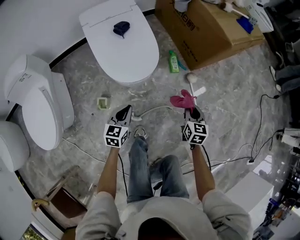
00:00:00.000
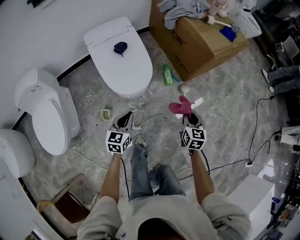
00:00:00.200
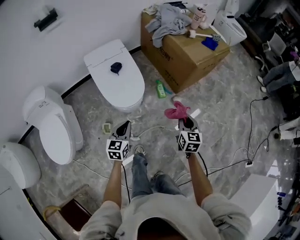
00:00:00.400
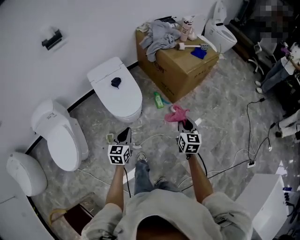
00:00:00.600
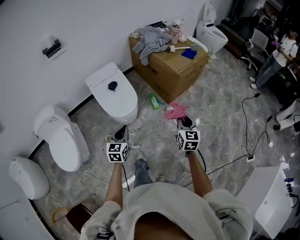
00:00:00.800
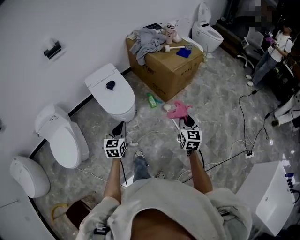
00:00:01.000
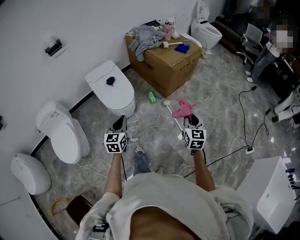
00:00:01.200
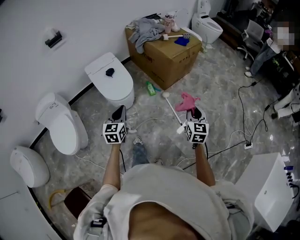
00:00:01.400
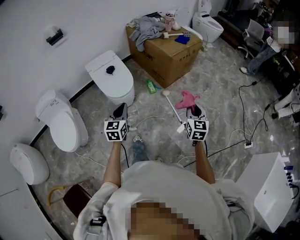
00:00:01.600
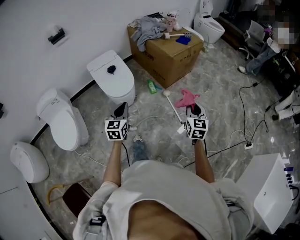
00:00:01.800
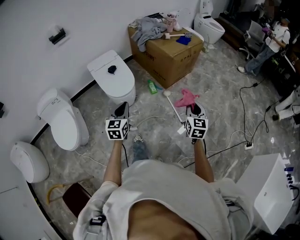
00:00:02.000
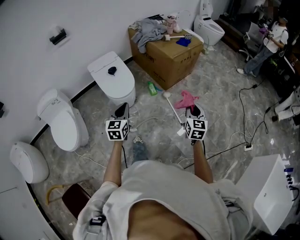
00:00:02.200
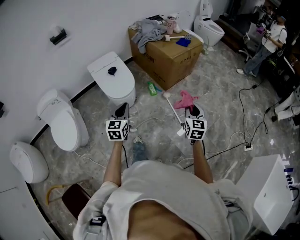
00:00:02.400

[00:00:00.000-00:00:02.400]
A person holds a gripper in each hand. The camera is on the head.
00:00:00.000 to 00:00:01.200: The right gripper is displaced upward, backward and to the right by approximately 50 cm, and turns by roughly 20 degrees; the left gripper travels upward by some 40 cm.
00:00:01.200 to 00:00:02.400: The grippers stay close to where they were, moving slightly.

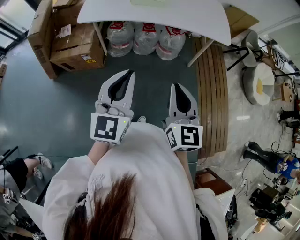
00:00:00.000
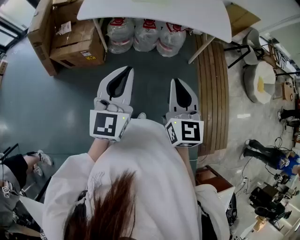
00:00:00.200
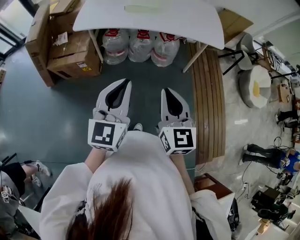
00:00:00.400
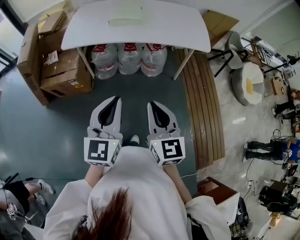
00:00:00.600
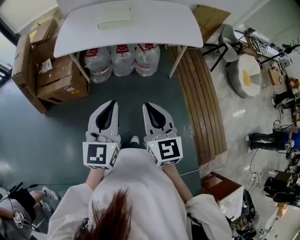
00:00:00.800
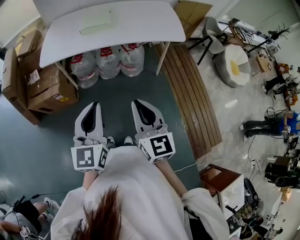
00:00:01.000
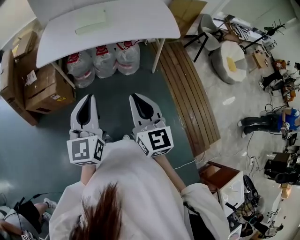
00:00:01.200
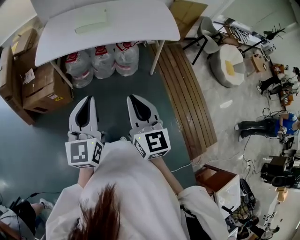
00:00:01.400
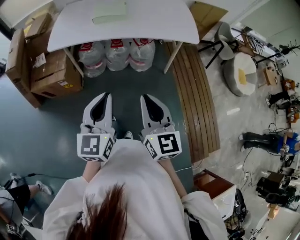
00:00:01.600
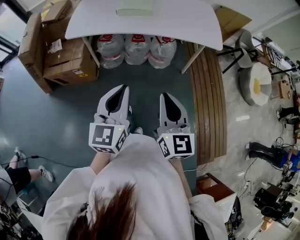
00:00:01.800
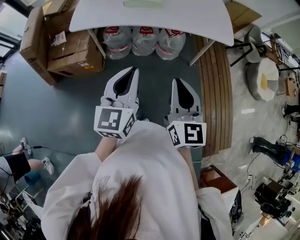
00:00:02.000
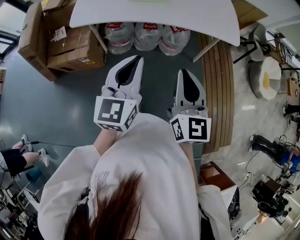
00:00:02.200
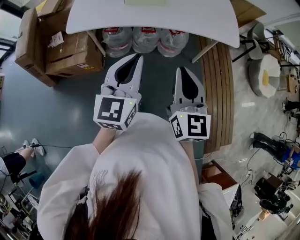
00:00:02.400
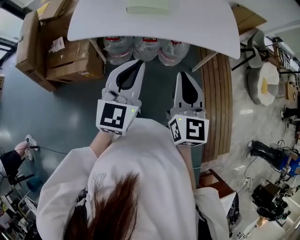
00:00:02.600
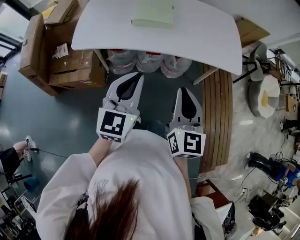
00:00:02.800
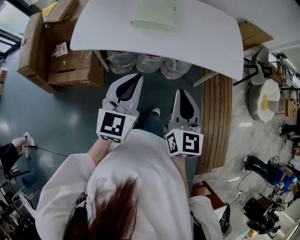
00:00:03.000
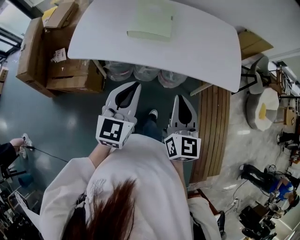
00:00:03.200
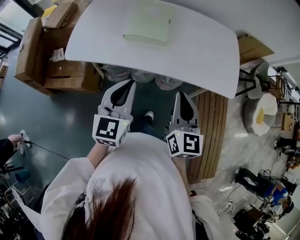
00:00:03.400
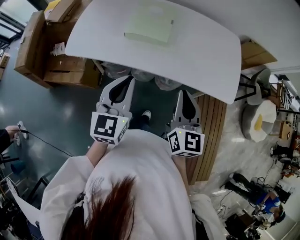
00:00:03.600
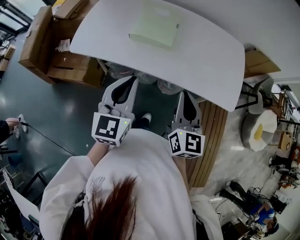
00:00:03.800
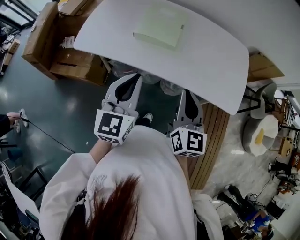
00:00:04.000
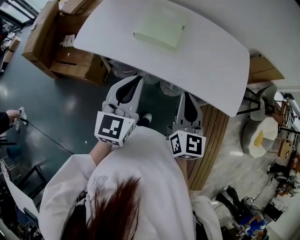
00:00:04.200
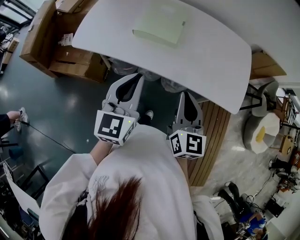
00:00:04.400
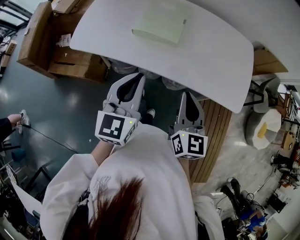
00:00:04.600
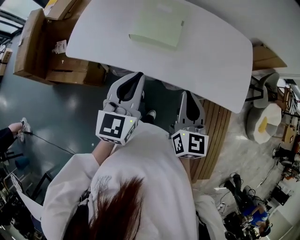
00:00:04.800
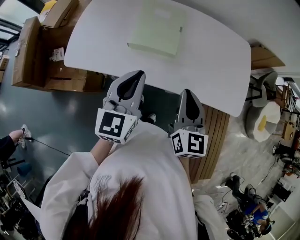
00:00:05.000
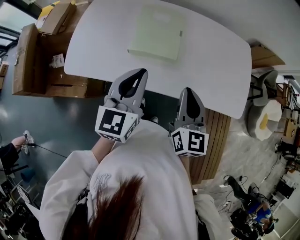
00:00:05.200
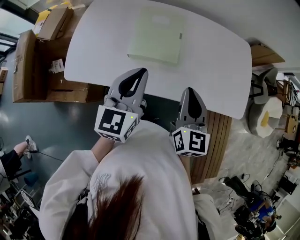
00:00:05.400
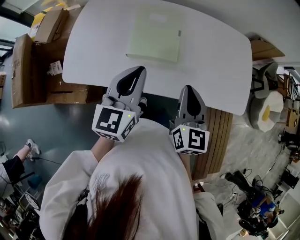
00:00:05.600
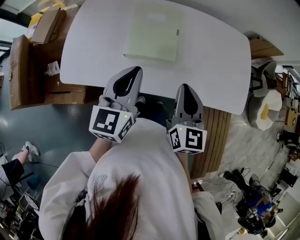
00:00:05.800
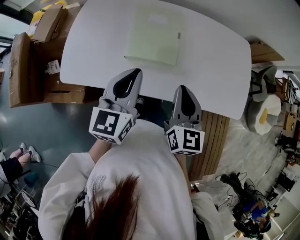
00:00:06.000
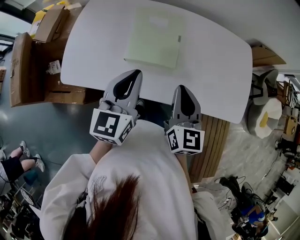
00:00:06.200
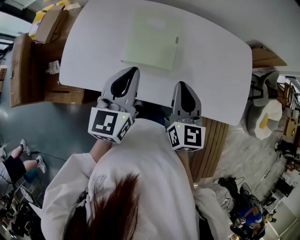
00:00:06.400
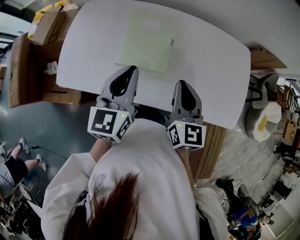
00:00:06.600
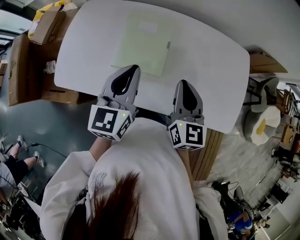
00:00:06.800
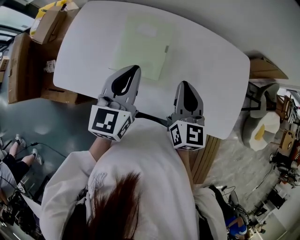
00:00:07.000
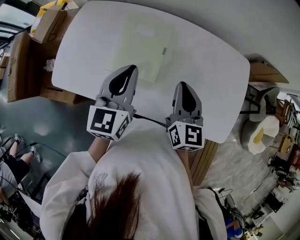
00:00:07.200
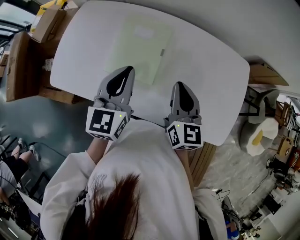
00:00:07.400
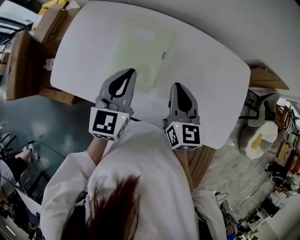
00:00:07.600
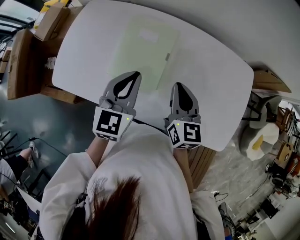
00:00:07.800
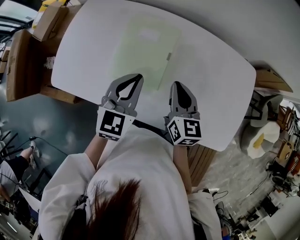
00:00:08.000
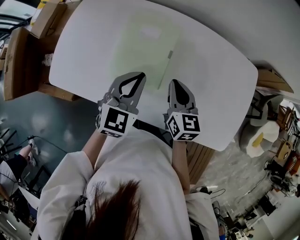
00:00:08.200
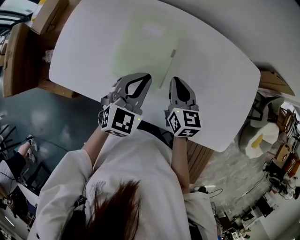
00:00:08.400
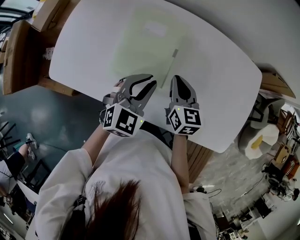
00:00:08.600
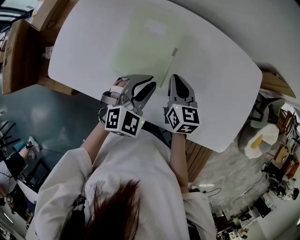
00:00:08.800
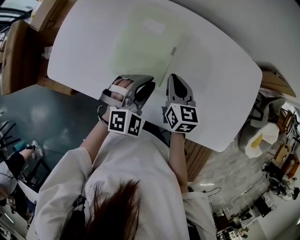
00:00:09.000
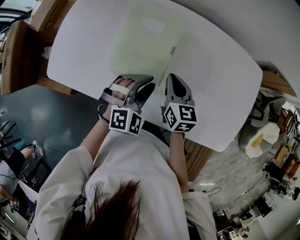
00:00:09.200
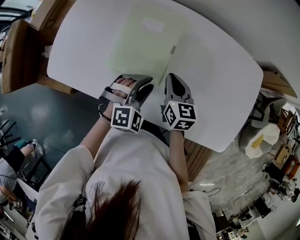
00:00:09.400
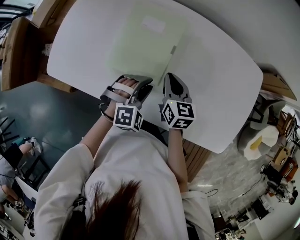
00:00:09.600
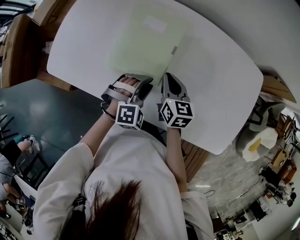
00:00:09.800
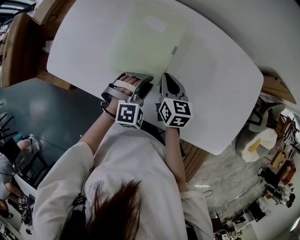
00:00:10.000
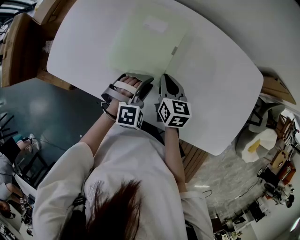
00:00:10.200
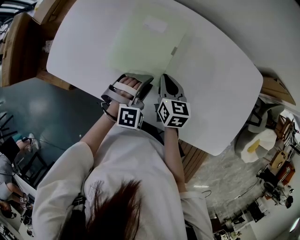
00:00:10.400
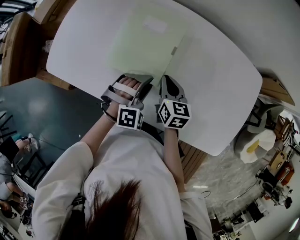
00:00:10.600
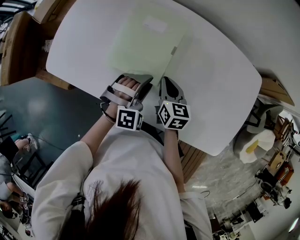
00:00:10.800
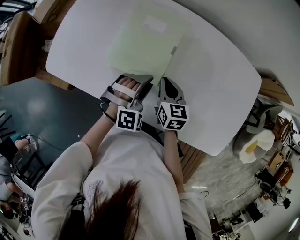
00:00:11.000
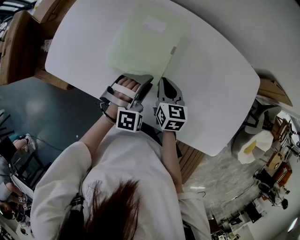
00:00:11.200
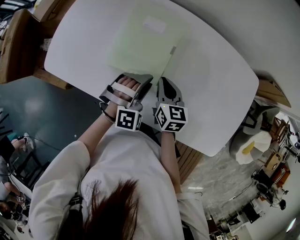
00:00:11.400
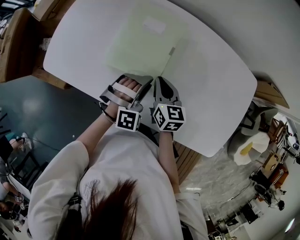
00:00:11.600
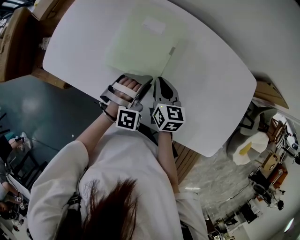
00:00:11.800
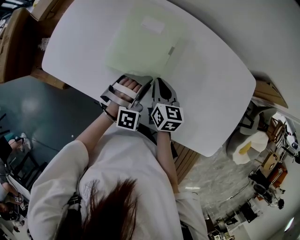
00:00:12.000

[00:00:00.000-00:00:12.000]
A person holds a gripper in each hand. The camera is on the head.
00:00:00.000 to 00:00:01.600: The left gripper heads to the right, covering about 5 cm.
00:00:01.600 to 00:00:03.000: The grippers both shift forward by approximately 25 cm.
00:00:03.000 to 00:00:04.400: The right gripper heads forward and to the right, covering roughly 15 cm, while the left gripper travels forward by about 10 cm.
00:00:04.400 to 00:00:06.000: The grippers both shift forward and to the left by roughly 15 cm.
00:00:06.000 to 00:00:07.600: The grippers both shift forward and to the right by about 15 cm.
00:00:07.600 to 00:00:09.000: The left gripper travels downward and to the right by about 15 cm, and rotates around the line of its fingers by some 50 degrees, clockwise from behind. Meanwhile the right gripper is displaced downward by about 10 cm.
00:00:09.000 to 00:00:10.400: The right gripper travels downward by roughly 5 cm. The left gripper moves downward, some 10 cm.
00:00:10.400 to 00:00:12.000: The grippers make only small movements.

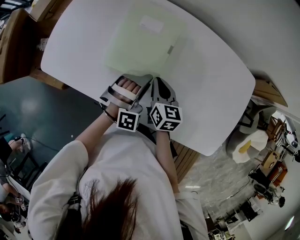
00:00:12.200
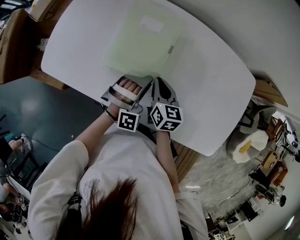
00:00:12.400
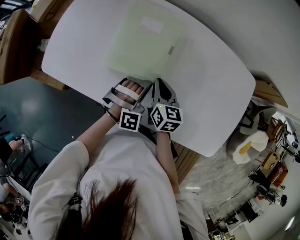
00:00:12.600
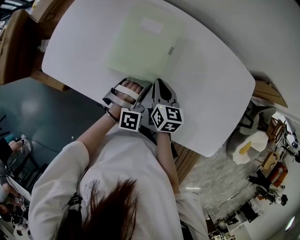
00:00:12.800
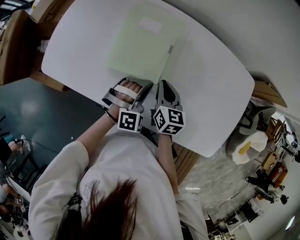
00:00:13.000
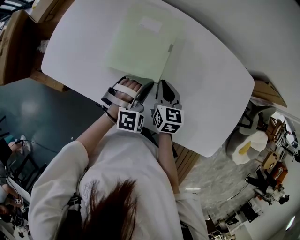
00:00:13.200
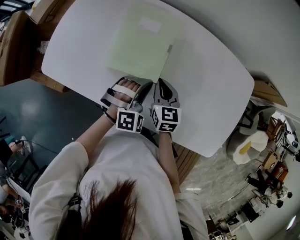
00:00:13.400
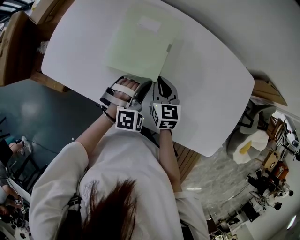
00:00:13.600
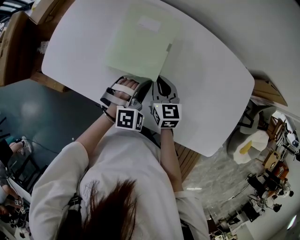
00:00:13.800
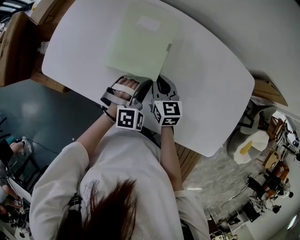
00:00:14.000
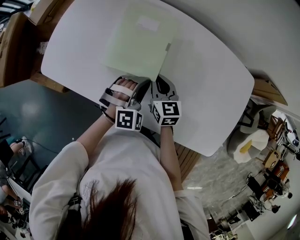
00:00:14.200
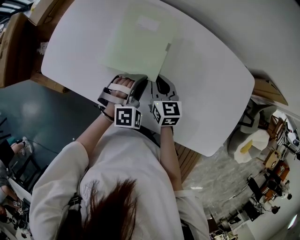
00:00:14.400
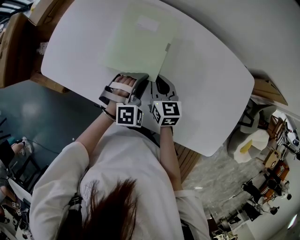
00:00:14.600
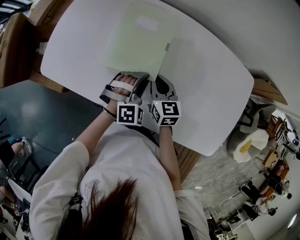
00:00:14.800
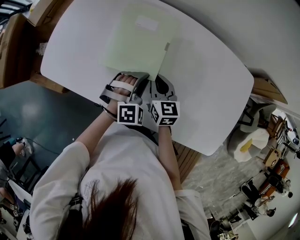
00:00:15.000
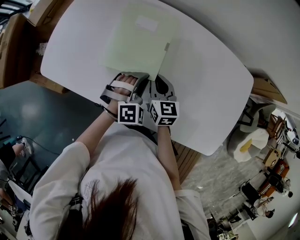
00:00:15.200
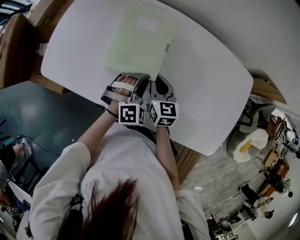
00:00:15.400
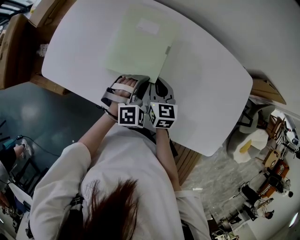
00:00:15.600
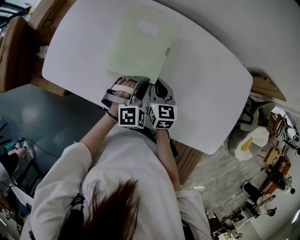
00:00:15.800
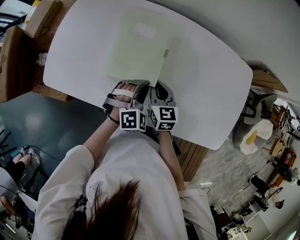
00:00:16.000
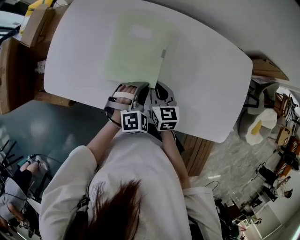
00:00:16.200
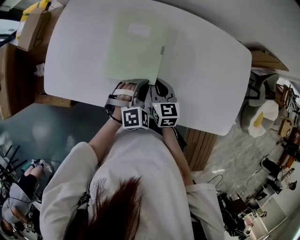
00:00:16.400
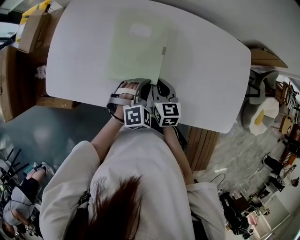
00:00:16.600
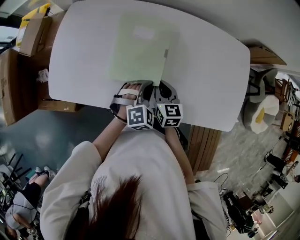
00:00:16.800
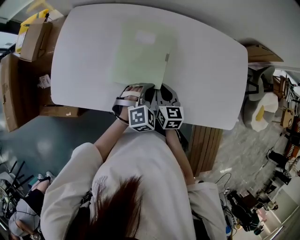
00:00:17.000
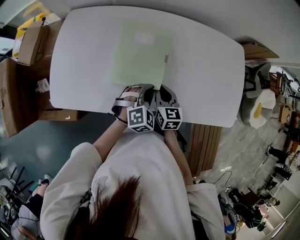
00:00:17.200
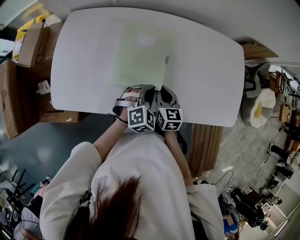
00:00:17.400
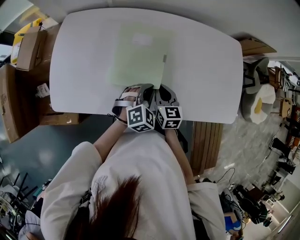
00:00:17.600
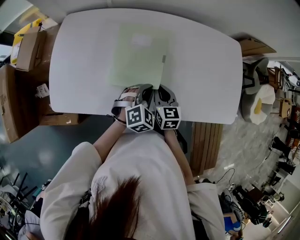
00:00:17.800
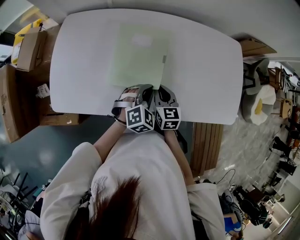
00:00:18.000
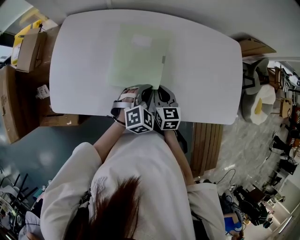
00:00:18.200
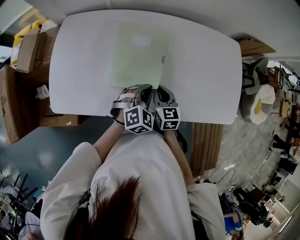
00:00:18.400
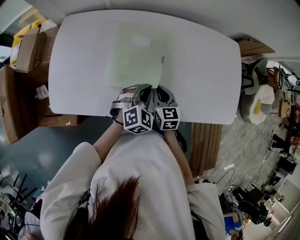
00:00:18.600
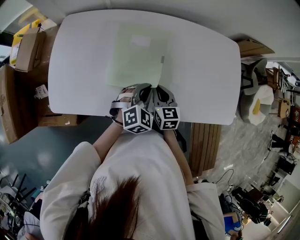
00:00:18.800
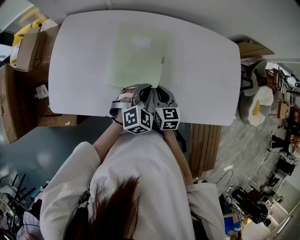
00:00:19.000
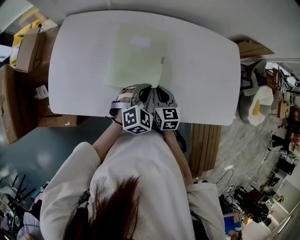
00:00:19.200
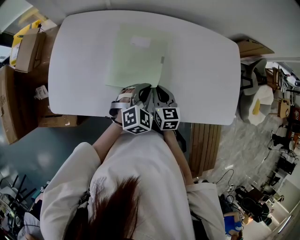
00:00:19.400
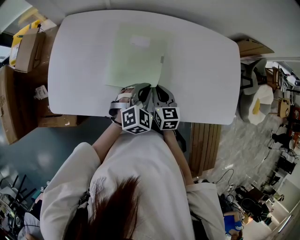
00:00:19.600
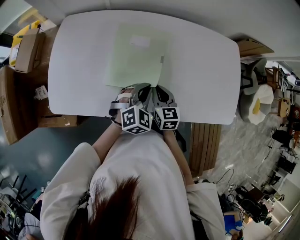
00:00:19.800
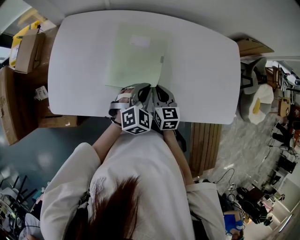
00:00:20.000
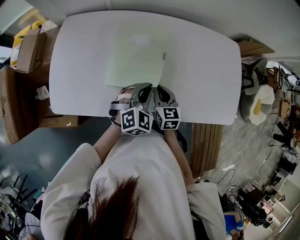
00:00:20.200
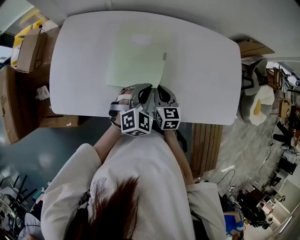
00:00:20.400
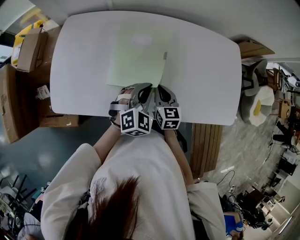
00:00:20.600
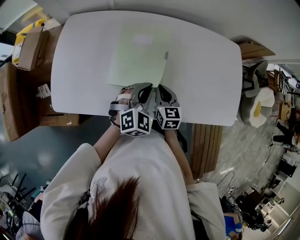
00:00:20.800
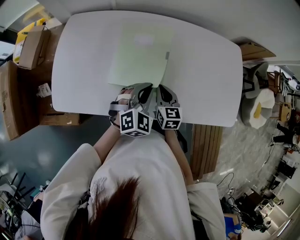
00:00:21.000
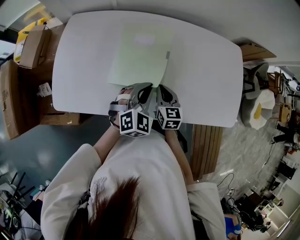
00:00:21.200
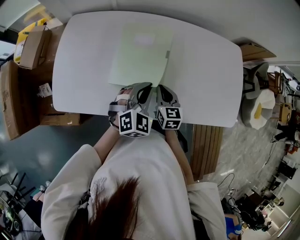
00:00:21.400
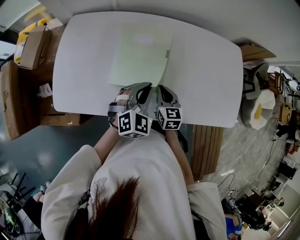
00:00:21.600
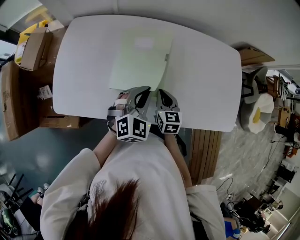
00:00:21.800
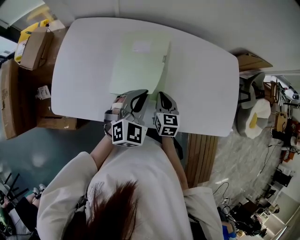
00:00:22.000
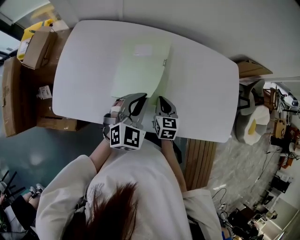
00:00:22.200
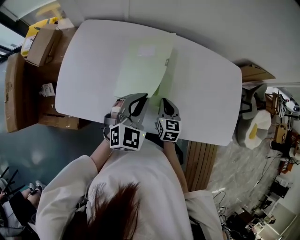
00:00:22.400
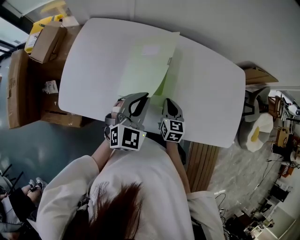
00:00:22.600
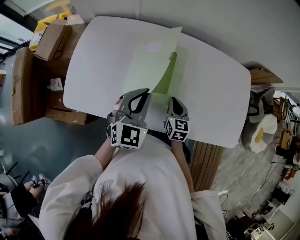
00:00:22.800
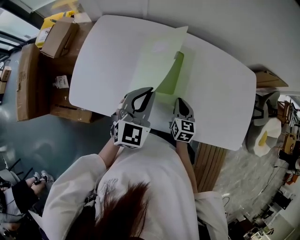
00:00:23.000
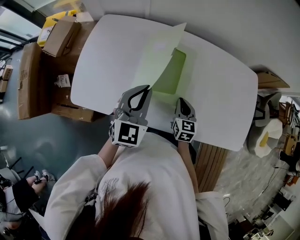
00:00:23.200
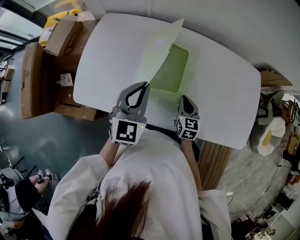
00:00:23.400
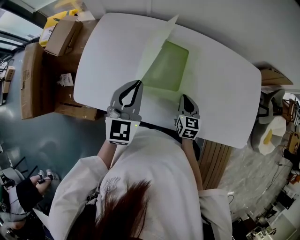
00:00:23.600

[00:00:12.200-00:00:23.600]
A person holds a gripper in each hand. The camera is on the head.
00:00:12.200 to 00:00:13.600: The left gripper closes up.
00:00:13.600 to 00:00:16.400: The grippers move only a little.
00:00:16.400 to 00:00:19.400: The grippers move only a little.
00:00:19.400 to 00:00:20.800: The grippers make only small movements.
00:00:20.800 to 00:00:22.200: The left gripper is displaced upward by some 5 cm.
00:00:22.200 to 00:00:23.600: The left gripper shifts some 10 cm to the left, and turns by approximately 30 degrees.
